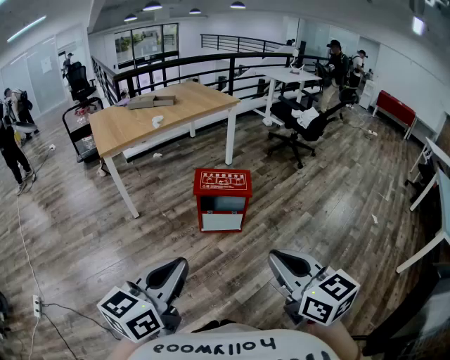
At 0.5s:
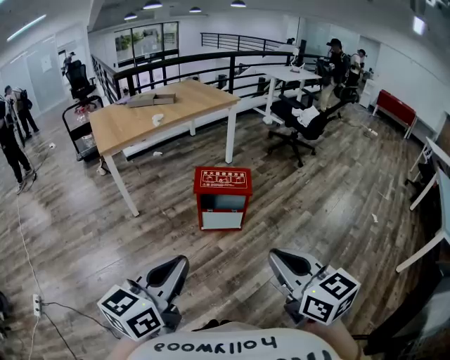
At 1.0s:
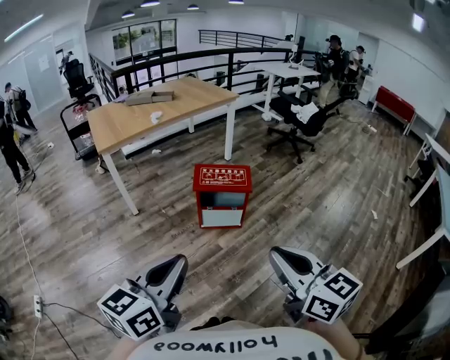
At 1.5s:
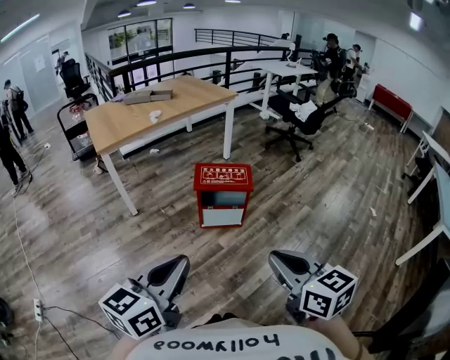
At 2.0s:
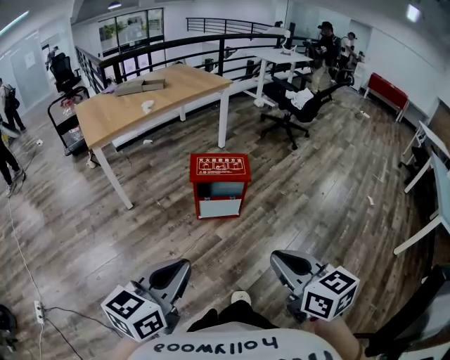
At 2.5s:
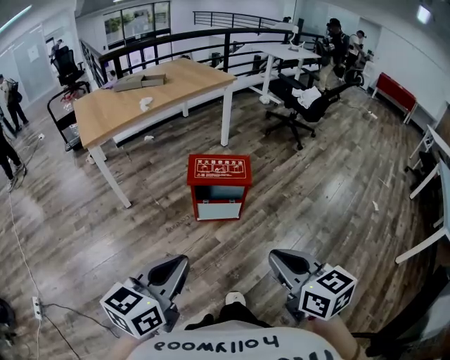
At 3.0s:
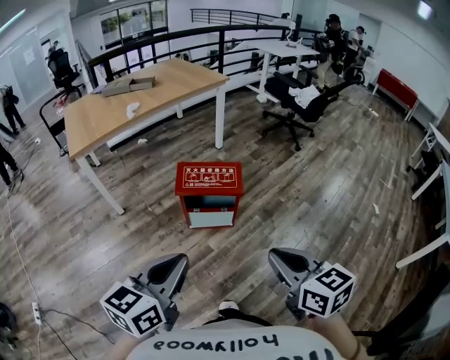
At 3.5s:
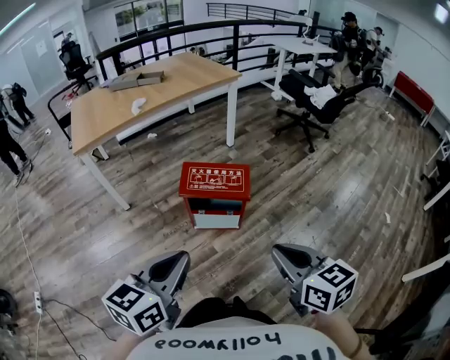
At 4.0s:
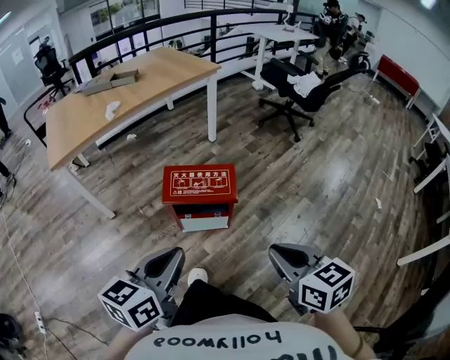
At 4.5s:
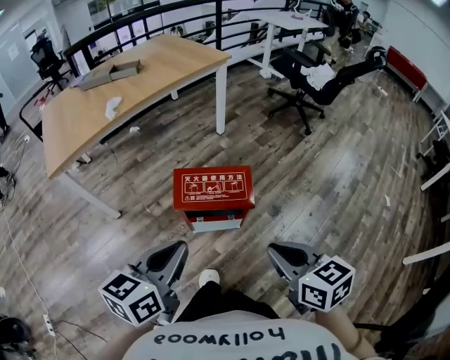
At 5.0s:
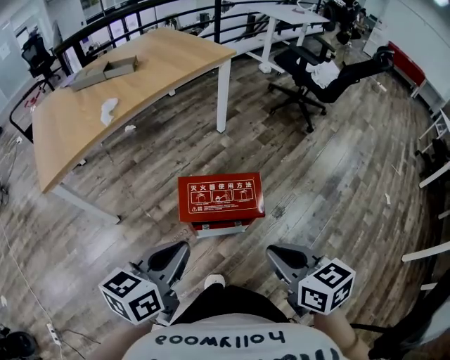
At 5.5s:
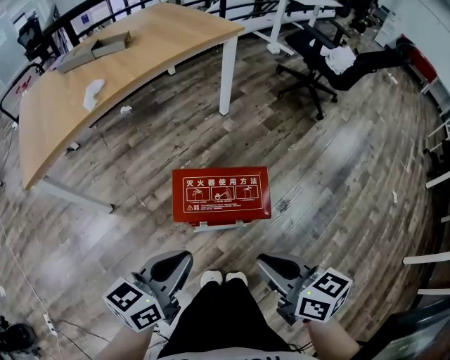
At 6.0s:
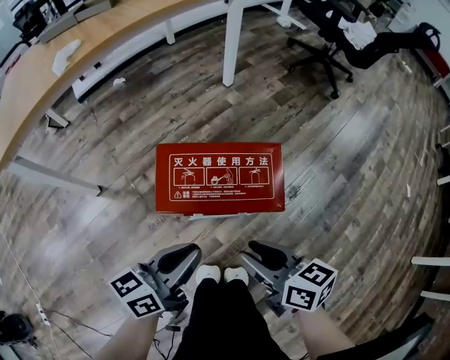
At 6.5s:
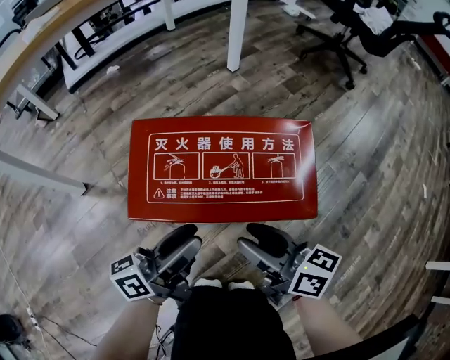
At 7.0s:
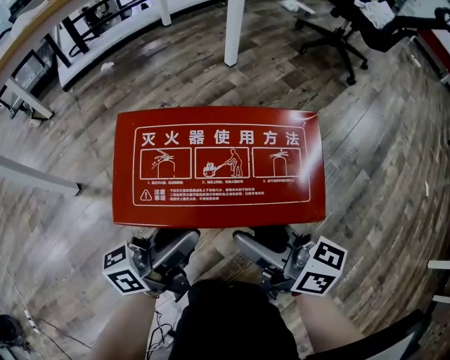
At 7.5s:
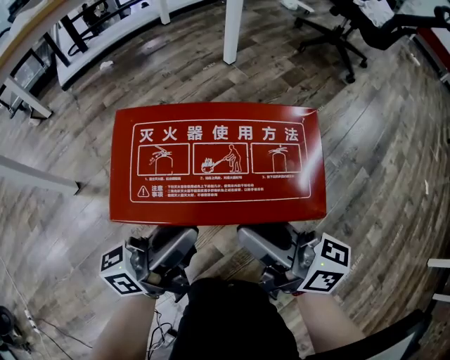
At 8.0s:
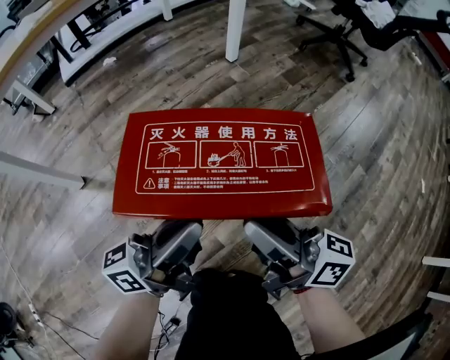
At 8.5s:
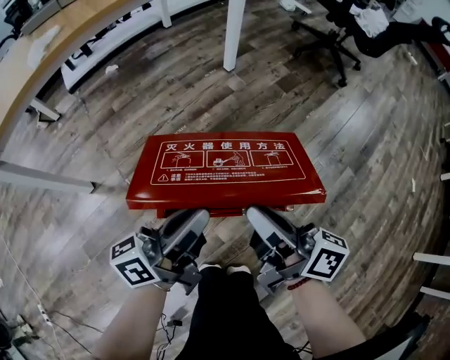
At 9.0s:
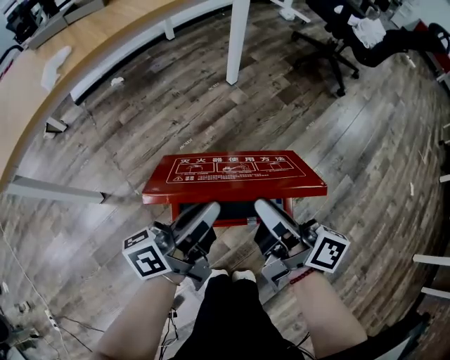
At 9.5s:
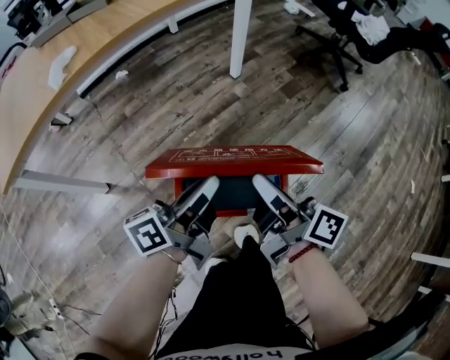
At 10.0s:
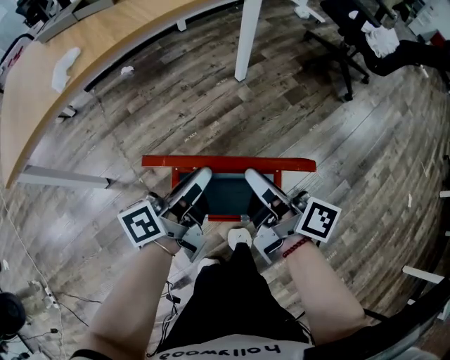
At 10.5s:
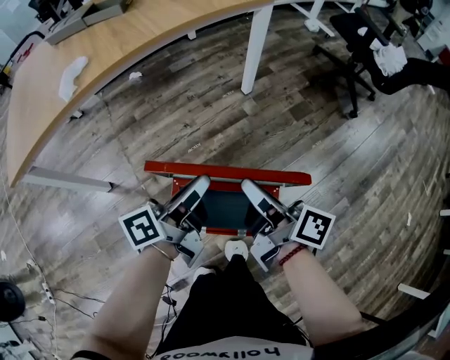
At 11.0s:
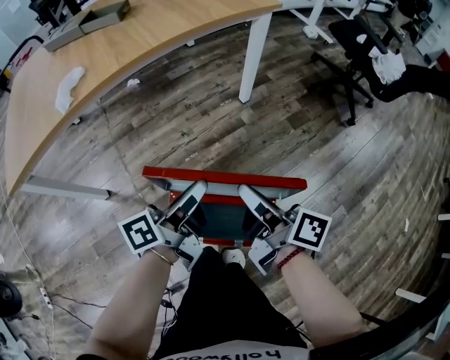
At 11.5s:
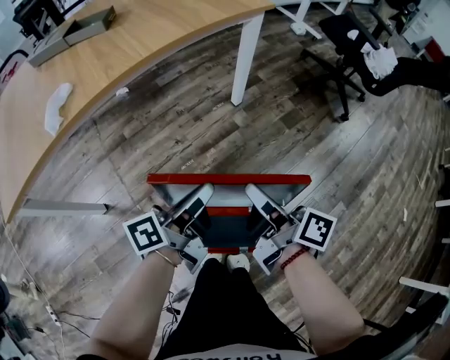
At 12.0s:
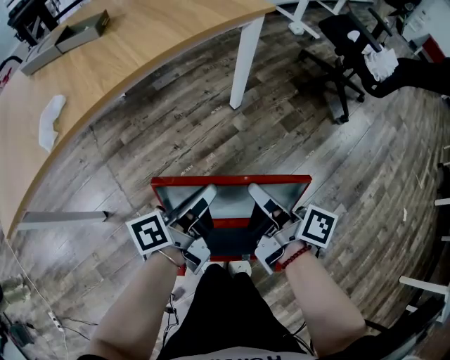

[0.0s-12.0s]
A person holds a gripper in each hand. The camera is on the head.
0.0s to 2.0s: The left gripper moves some 5 cm. Meanwhile the right gripper heads downward, covering roughly 5 cm.
2.0s to 4.0s: The two grippers go roughly 30 cm forward and to the right.
4.0s to 6.0s: The right gripper heads downward, forward and to the left, covering some 40 cm, rotates approximately 20 degrees, and opens. Meanwhile the left gripper heads downward and forward, covering about 35 cm, and turns by about 20 degrees.
6.0s to 8.0s: The right gripper is displaced forward and downward by some 10 cm, and tilts its fingers some 30 degrees upward. The left gripper is displaced downward and forward by roughly 10 cm, turns by approximately 30 degrees, and opens, then closes again.
8.0s to 10.0s: The grippers both shift forward and upward by some 25 cm. The right gripper changes its angle by some 20 degrees, while the left gripper rotates roughly 20 degrees.
10.0s to 12.0s: The grippers both shift forward by about 10 cm.

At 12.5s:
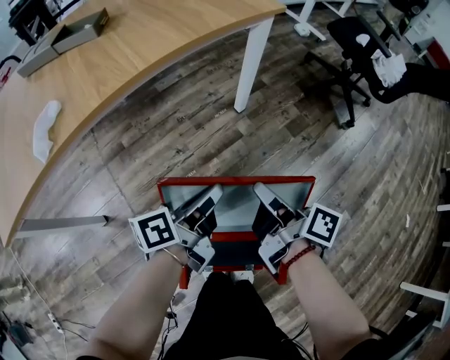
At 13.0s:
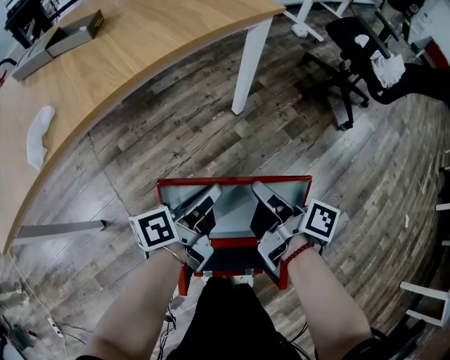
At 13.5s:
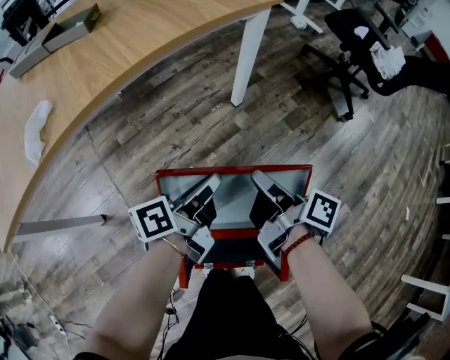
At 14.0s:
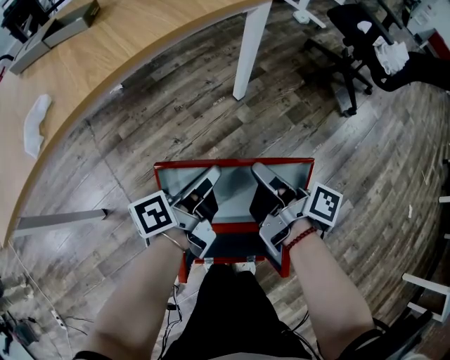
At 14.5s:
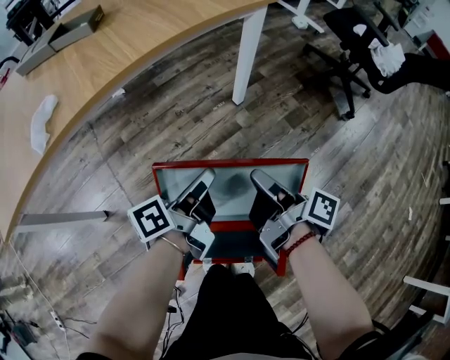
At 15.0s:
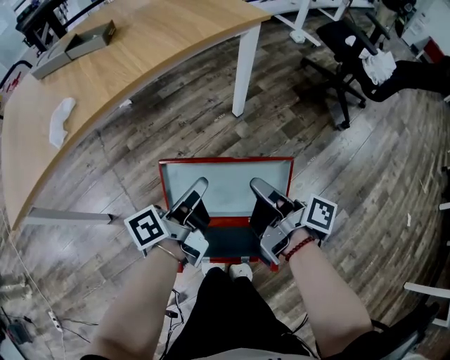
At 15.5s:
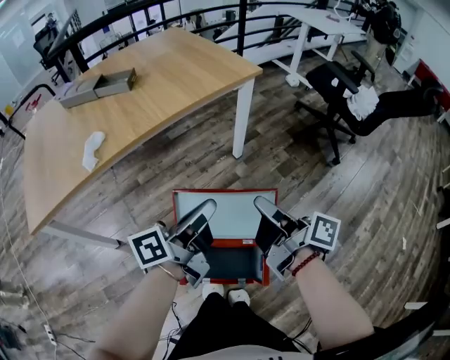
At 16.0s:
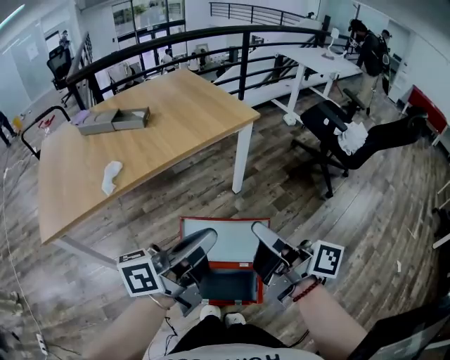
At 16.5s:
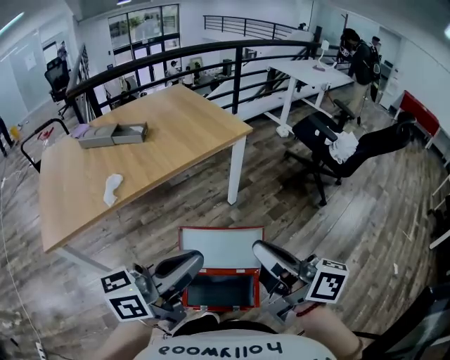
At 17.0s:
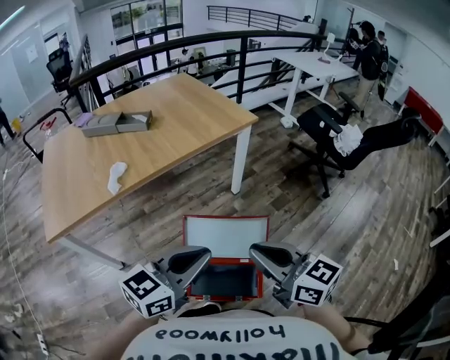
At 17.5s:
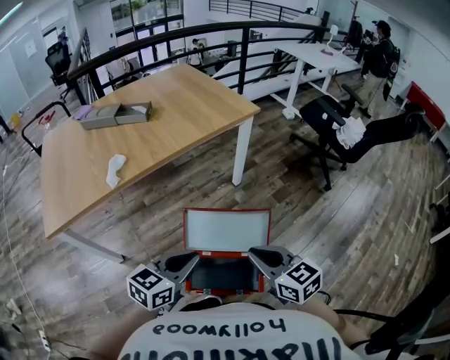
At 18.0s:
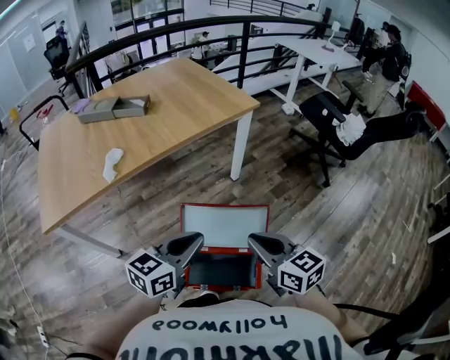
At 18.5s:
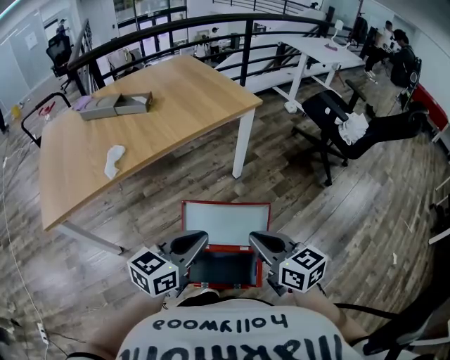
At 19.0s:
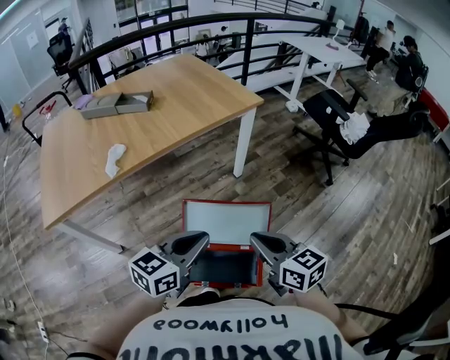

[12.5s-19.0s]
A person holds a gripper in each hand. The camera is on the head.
12.5s to 14.5s: The grippers move only a little.
14.5s to 17.0s: The grippers both shift upward and backward by approximately 35 cm. The left gripper rotates around the line of its fingers by roughly 70 degrees, clockwise from behind. Meanwhile the right gripper rotates around the line of its fingers by roughly 70 degrees, counterclockwise from behind.
17.0s to 19.0s: Both grippers travel together downward, roughly 10 cm.

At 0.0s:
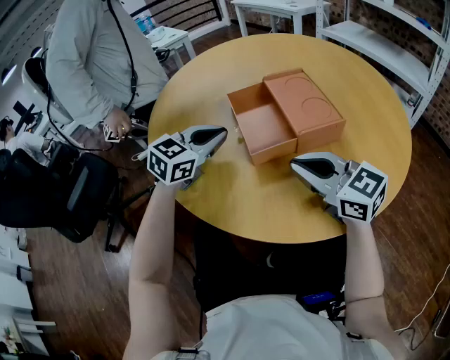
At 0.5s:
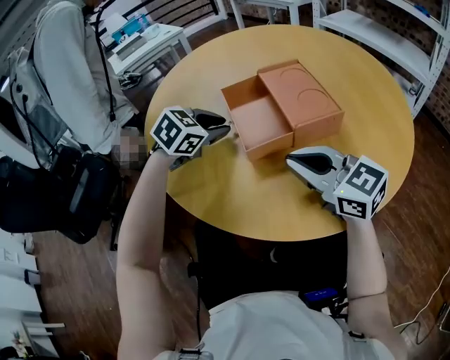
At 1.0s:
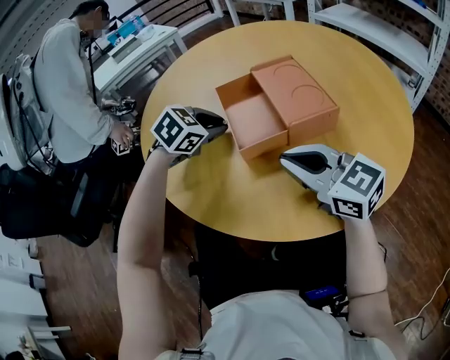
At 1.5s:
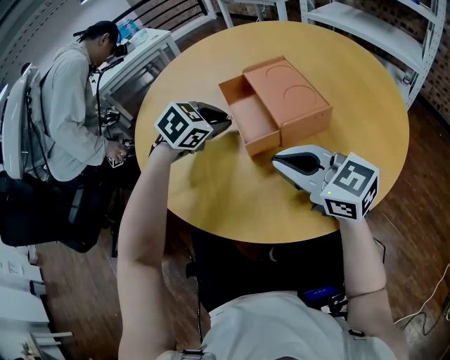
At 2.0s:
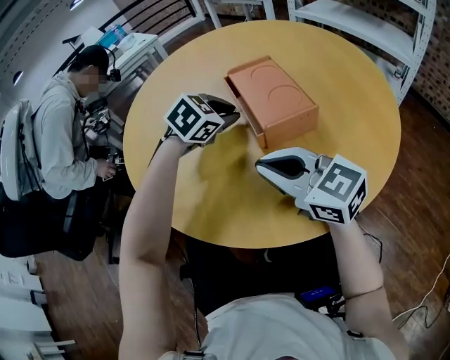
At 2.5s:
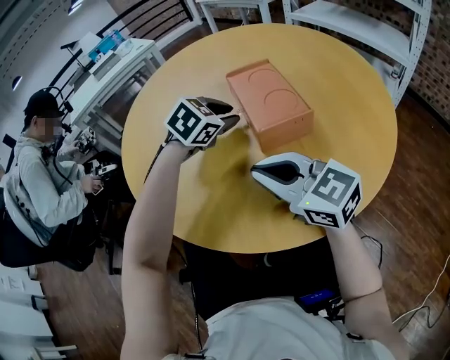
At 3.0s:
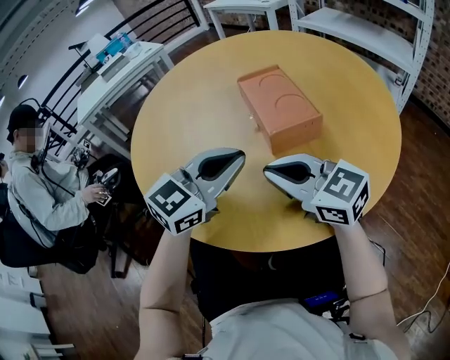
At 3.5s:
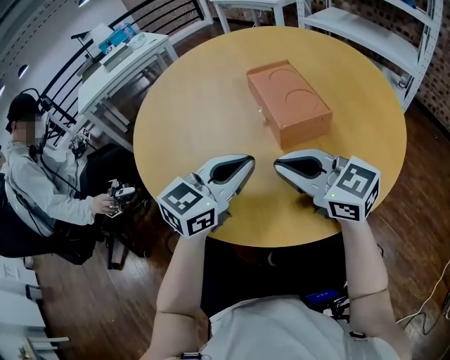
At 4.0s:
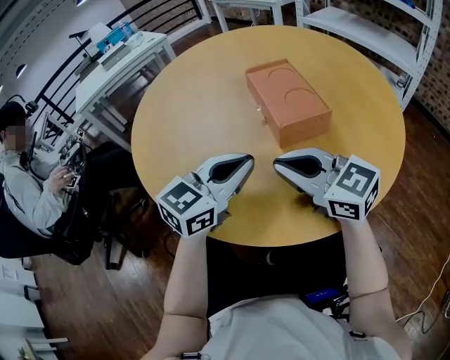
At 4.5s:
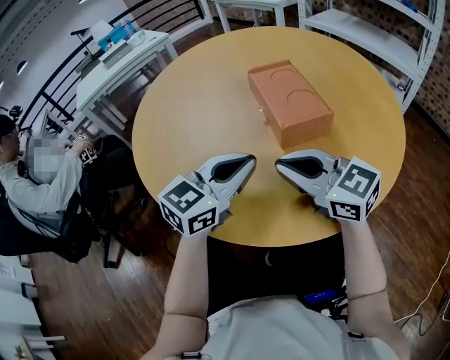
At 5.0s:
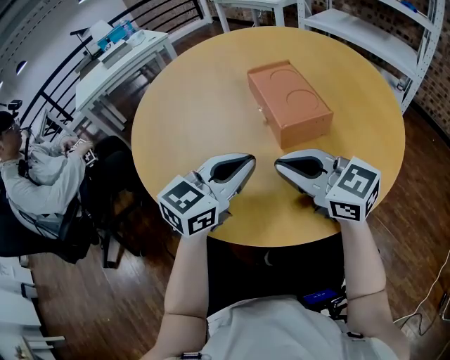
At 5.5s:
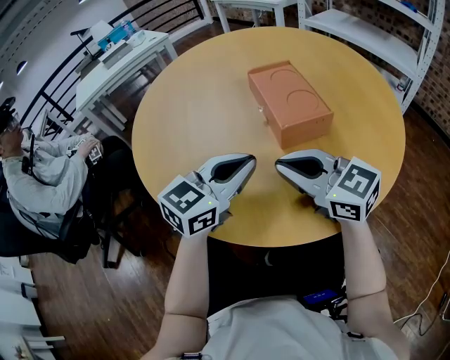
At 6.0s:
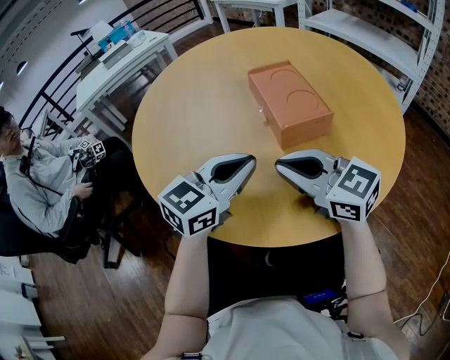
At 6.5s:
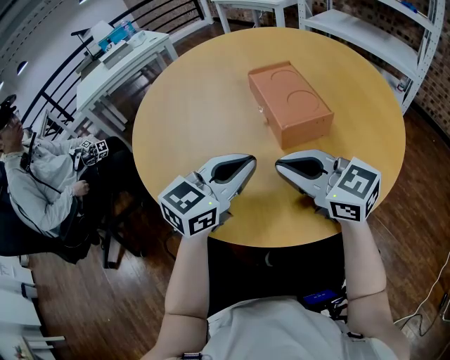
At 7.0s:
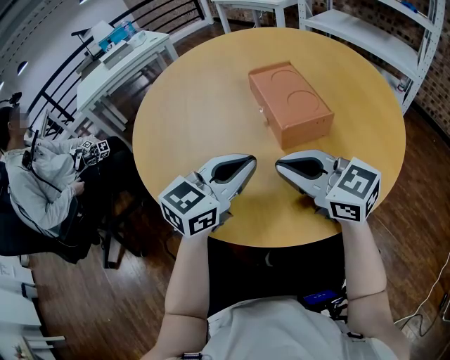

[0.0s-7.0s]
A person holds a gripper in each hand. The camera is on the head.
0.0s to 2.0s: The left gripper shifts roughly 15 cm to the right and forward, and changes its angle by approximately 30 degrees.
2.0s to 3.5s: The left gripper travels backward by some 15 cm, and tilts its fingers approximately 40 degrees upward.
3.5s to 7.0s: Neither gripper changes place.

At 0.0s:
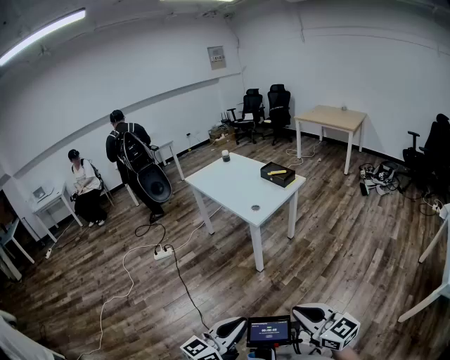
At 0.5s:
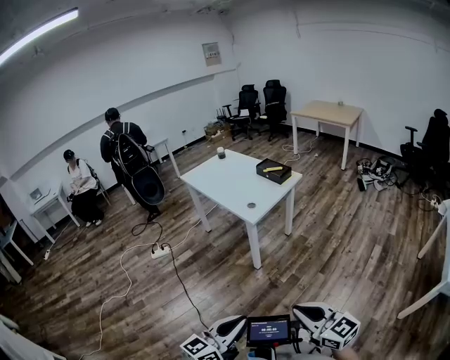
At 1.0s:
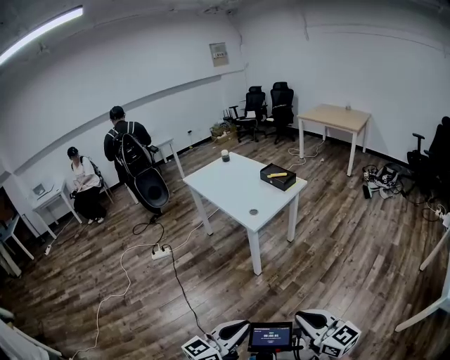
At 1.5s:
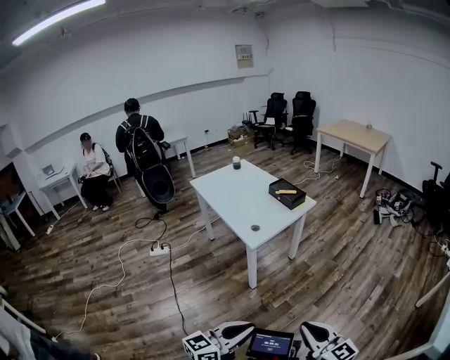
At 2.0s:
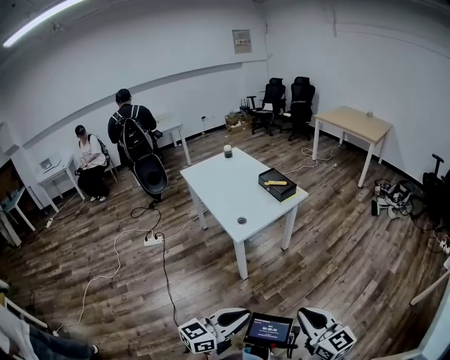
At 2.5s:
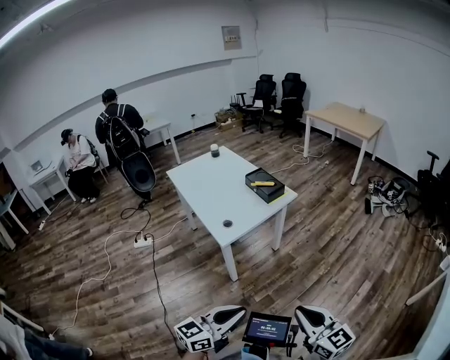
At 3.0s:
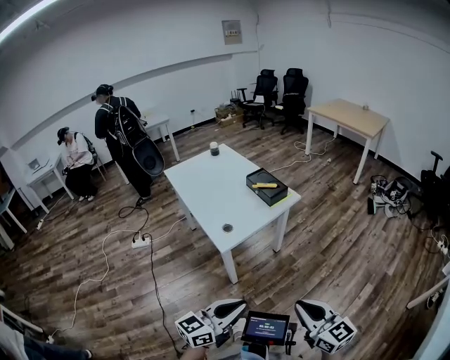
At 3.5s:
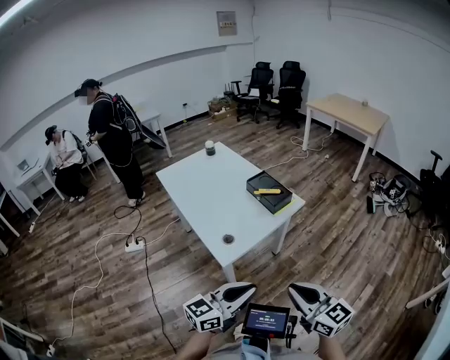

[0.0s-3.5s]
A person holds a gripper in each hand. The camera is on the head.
0.0s to 2.0s: Both grippers move forward and to the right, approximately 25 cm.
2.0s to 3.5s: The two grippers go roughly 25 cm forward.
